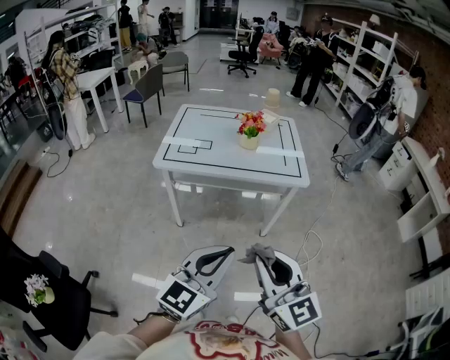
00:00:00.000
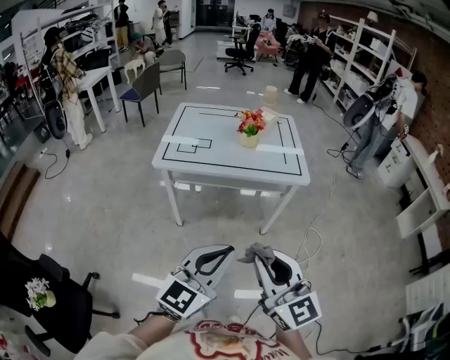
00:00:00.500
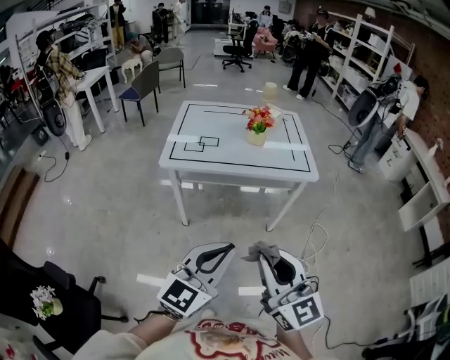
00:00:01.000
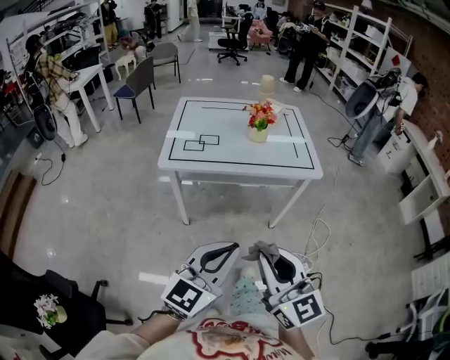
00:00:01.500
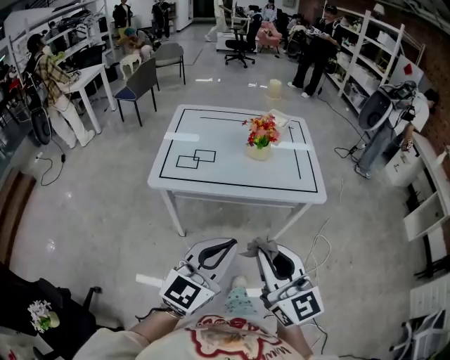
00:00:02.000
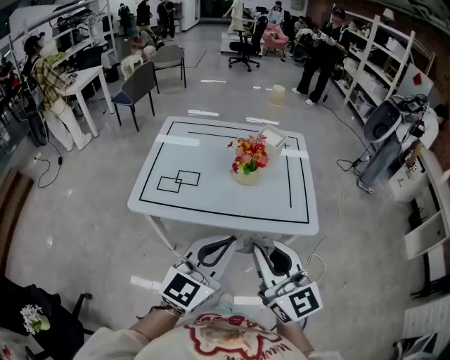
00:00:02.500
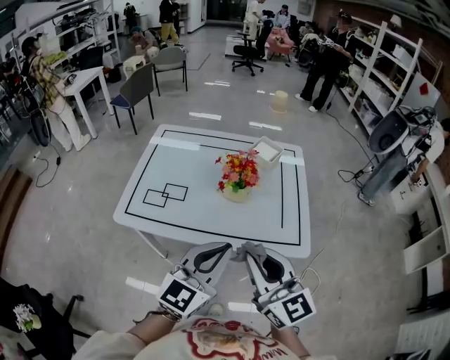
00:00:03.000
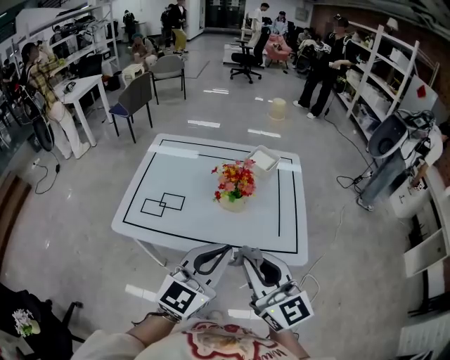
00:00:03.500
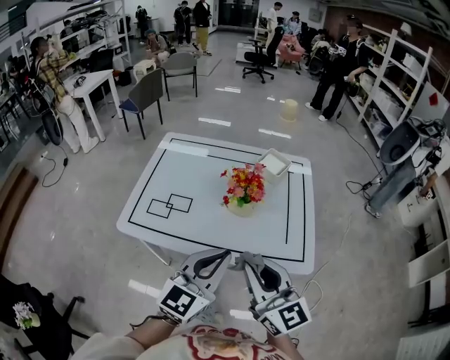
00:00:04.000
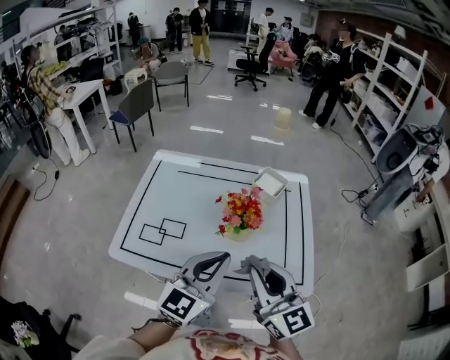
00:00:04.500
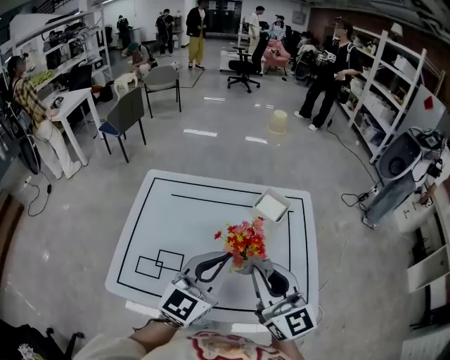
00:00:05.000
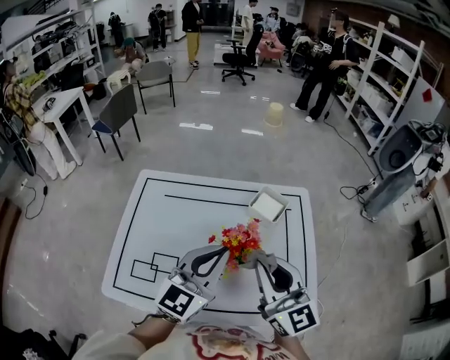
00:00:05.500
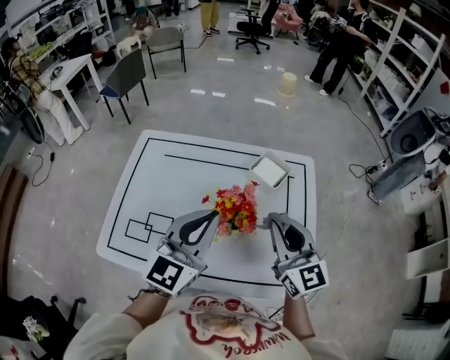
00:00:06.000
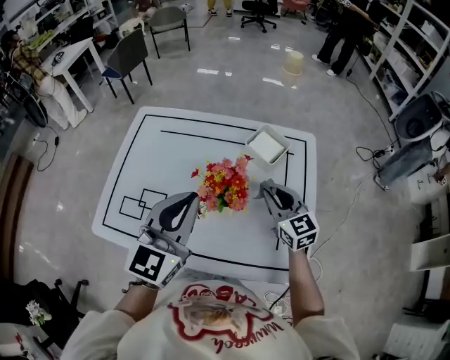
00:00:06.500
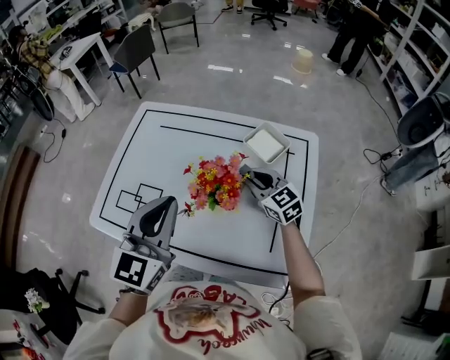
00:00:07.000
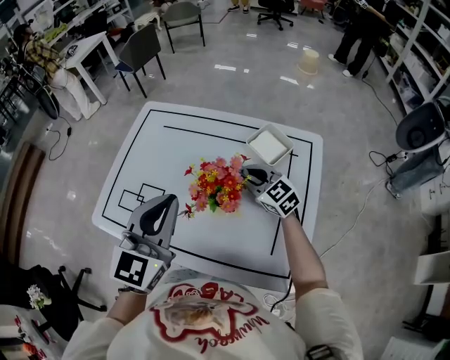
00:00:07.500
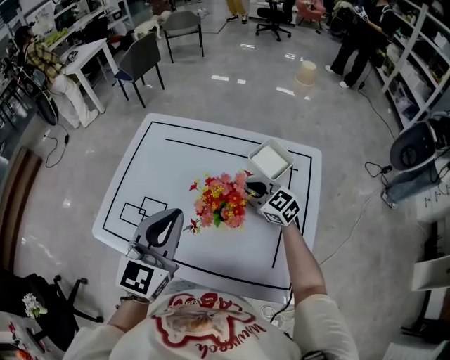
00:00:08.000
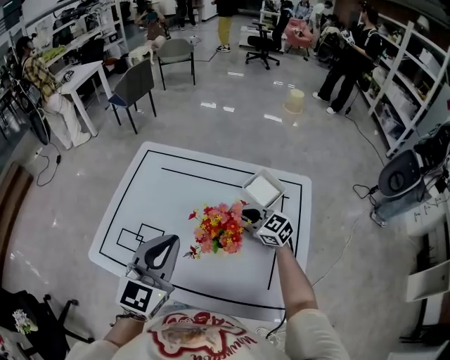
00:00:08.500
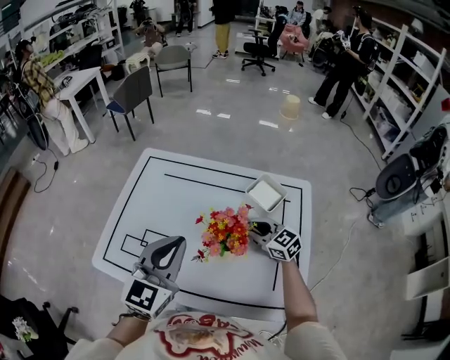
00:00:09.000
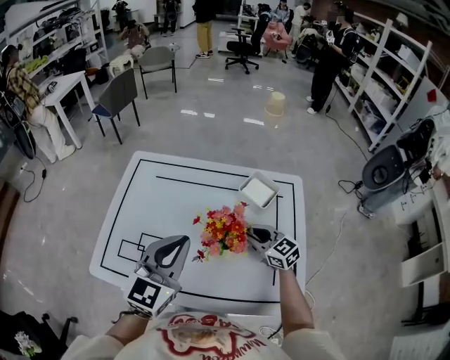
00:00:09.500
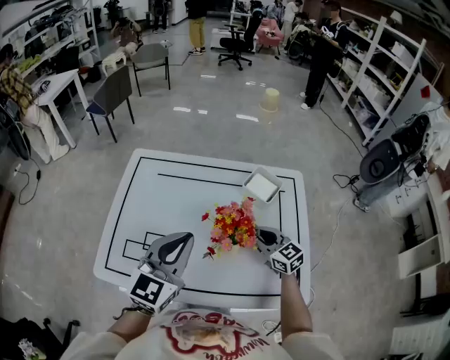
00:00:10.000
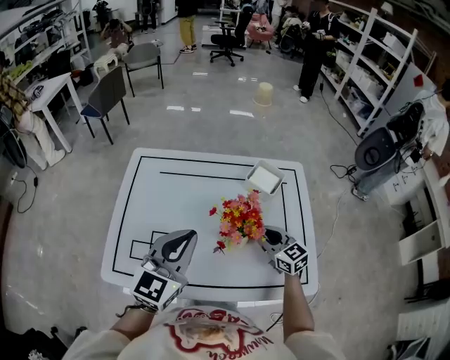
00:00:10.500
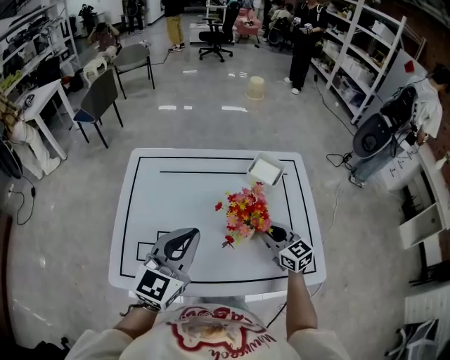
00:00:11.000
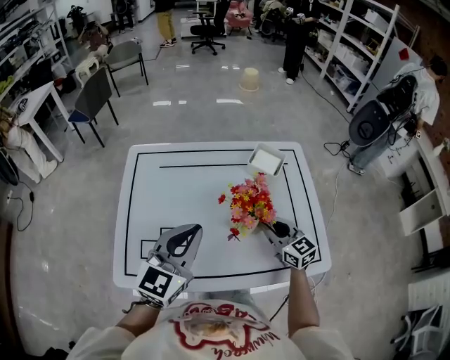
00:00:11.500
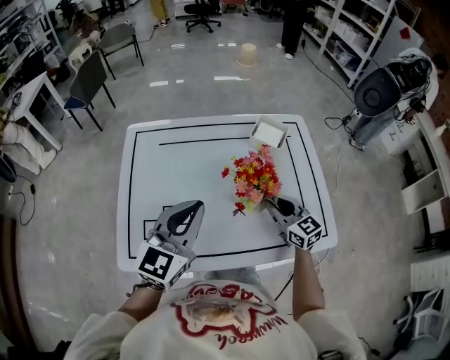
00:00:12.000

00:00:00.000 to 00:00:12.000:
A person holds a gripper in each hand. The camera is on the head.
00:00:00.000 to 00:00:02.000: Both grippers travel together forward, some 15 cm.
00:00:02.000 to 00:00:04.000: The right gripper goes roughly 25 cm forward, while the left gripper is displaced forward and to the right by some 25 cm.
00:00:04.000 to 00:00:06.000: The two grippers go some 25 cm forward.
00:00:06.000 to 00:00:08.000: The right gripper is displaced downward by approximately 20 cm, and swivels approximately 50 degrees.
00:00:08.000 to 00:00:10.000: The right gripper travels backward by approximately 10 cm, and turns by some 20 degrees.
00:00:10.000 to 00:00:12.000: The left gripper moves roughly 5 cm. The right gripper is displaced backward by roughly 5 cm.

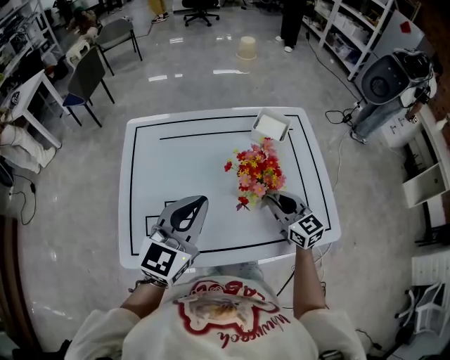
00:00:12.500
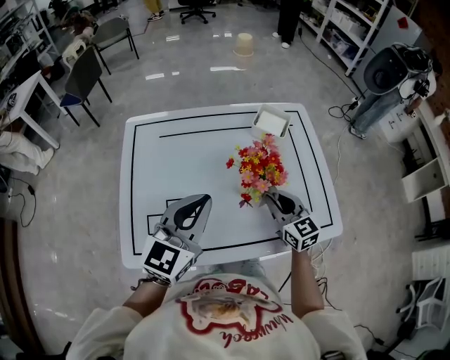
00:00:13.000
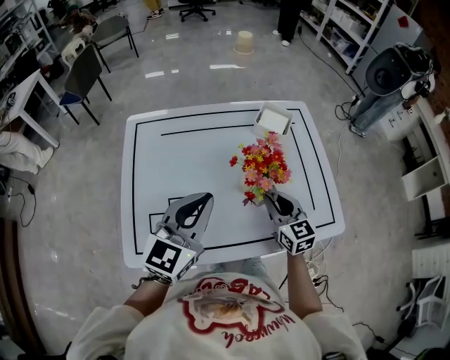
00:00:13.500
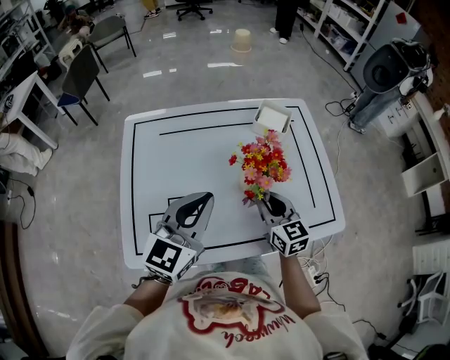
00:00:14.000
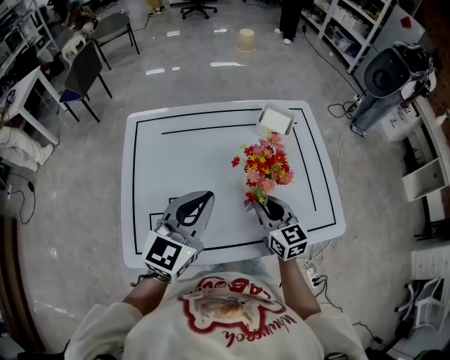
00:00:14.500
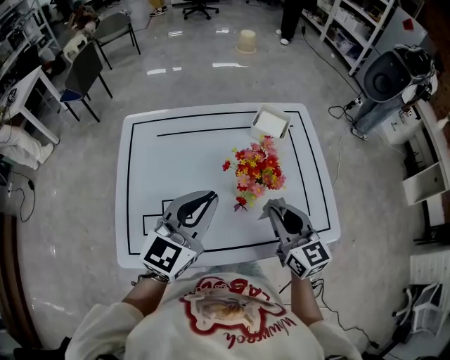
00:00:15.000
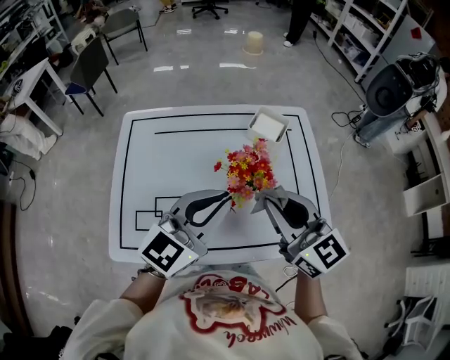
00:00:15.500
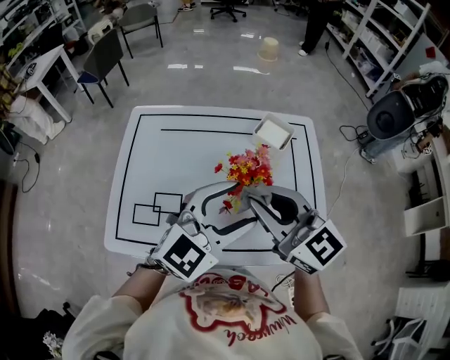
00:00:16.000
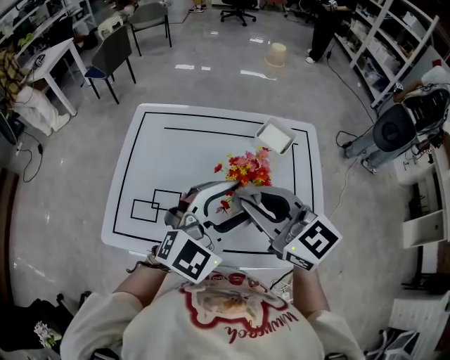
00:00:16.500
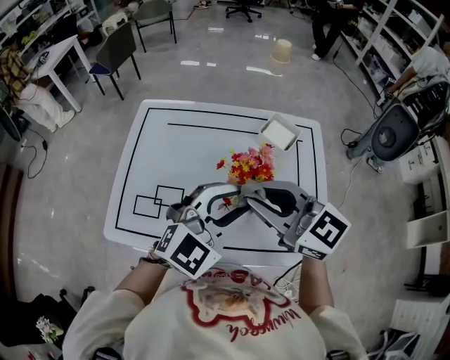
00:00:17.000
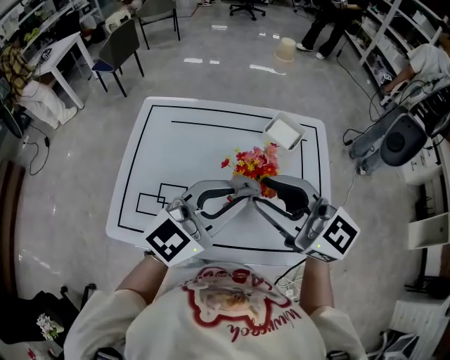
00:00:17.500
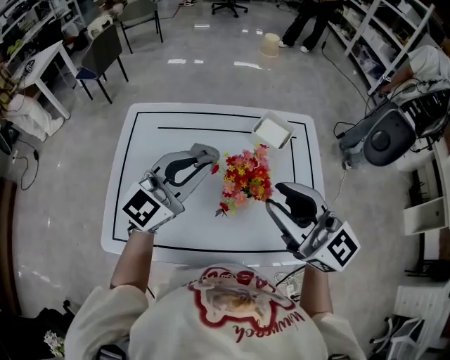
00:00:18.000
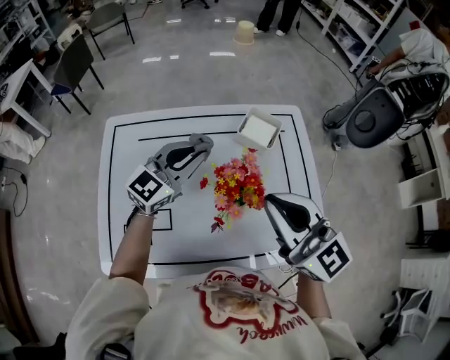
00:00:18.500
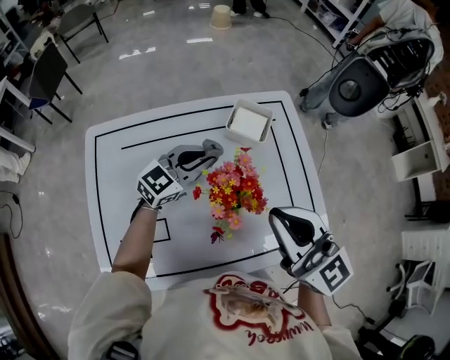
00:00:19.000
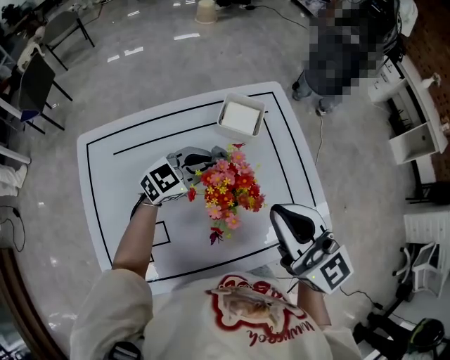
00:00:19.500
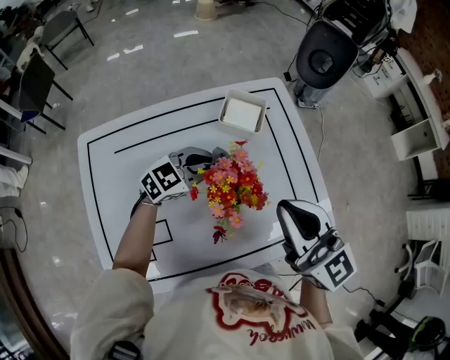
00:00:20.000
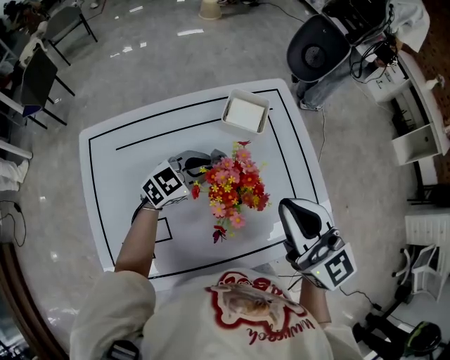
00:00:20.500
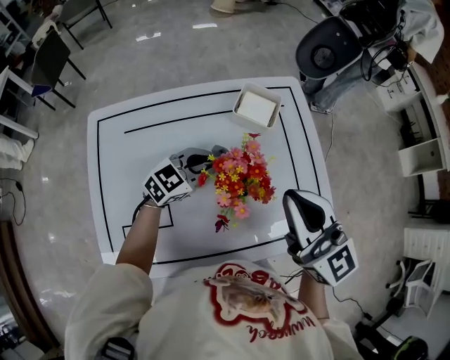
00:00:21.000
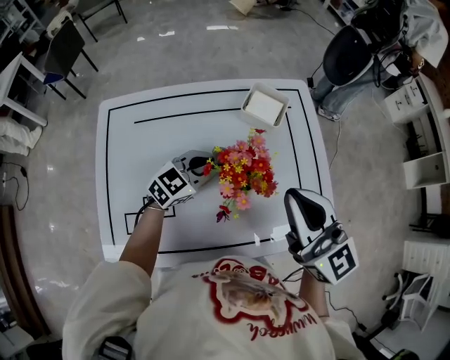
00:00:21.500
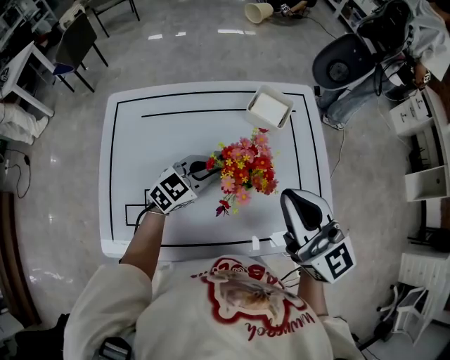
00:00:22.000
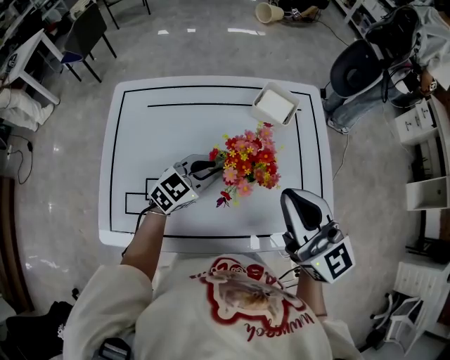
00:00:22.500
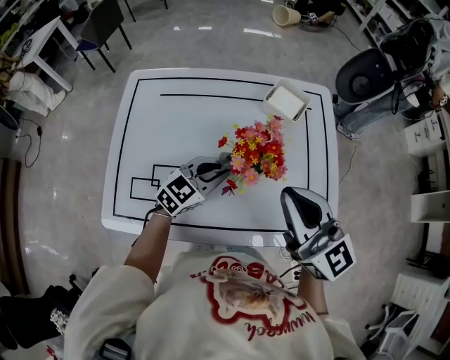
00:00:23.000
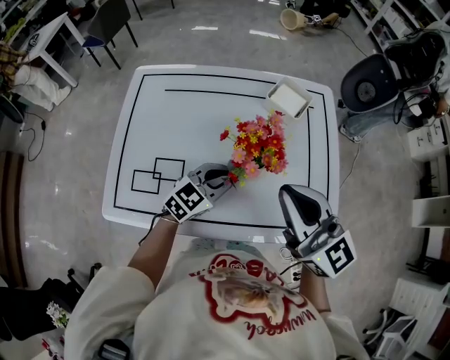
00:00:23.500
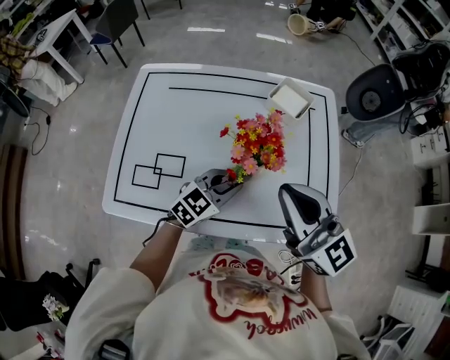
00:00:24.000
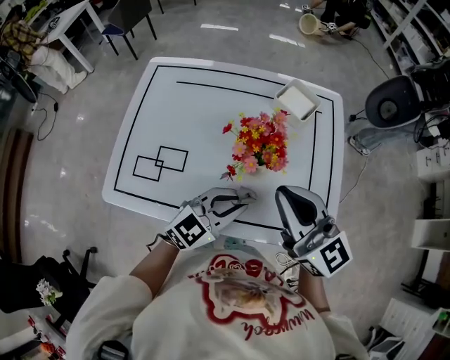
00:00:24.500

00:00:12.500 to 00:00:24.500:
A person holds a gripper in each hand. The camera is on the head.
00:00:12.500 to 00:00:14.500: The right gripper goes roughly 5 cm to the left.
00:00:14.500 to 00:00:16.500: The left gripper is displaced to the right by approximately 15 cm, swivels approximately 30 degrees, and opens its fingers; the right gripper shifts roughly 20 cm upward, and rotates roughly 40 degrees.
00:00:16.500 to 00:00:18.500: The left gripper travels forward by about 20 cm, swivels some 20 degrees, and closes its fingers, while the right gripper heads to the right, covering roughly 5 cm, and changes its angle by some 20 degrees.
00:00:18.500 to 00:00:20.500: The left gripper is displaced downward and to the right by roughly 15 cm, and rotates some 30 degrees; the right gripper ends up roughly 5 cm from where it was.
00:00:20.500 to 00:00:22.500: The left gripper heads backward, covering about 10 cm, and rotates about 20 degrees.
00:00:22.500 to 00:00:24.500: The left gripper is displaced backward and to the right by roughly 15 cm.

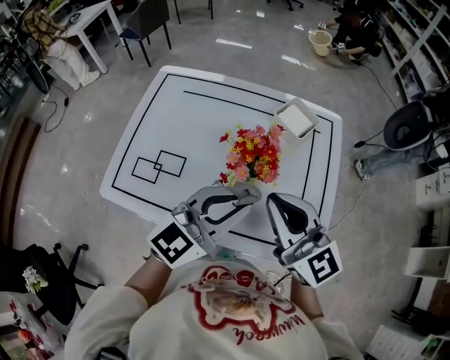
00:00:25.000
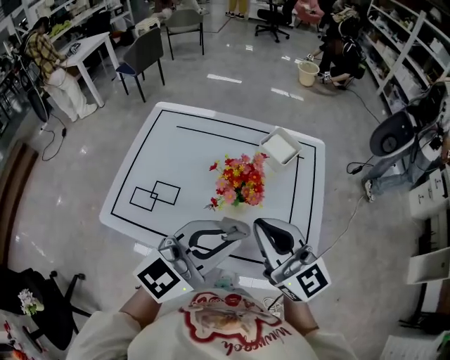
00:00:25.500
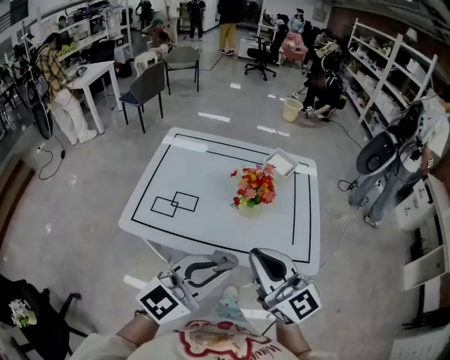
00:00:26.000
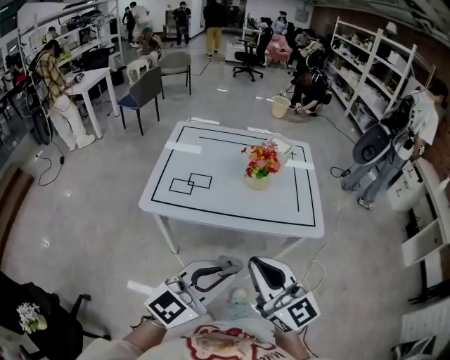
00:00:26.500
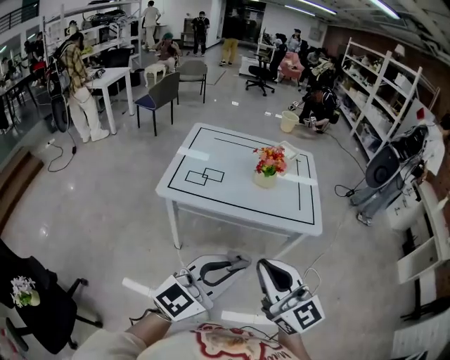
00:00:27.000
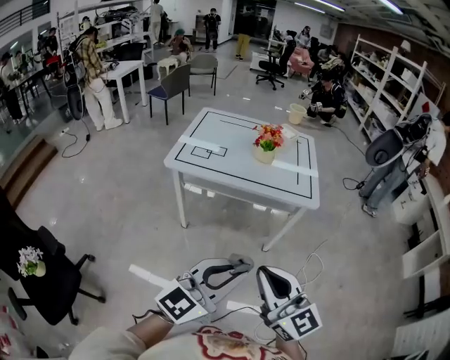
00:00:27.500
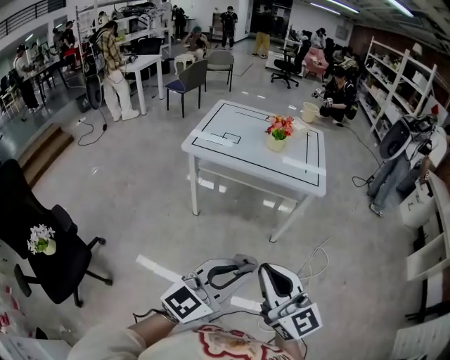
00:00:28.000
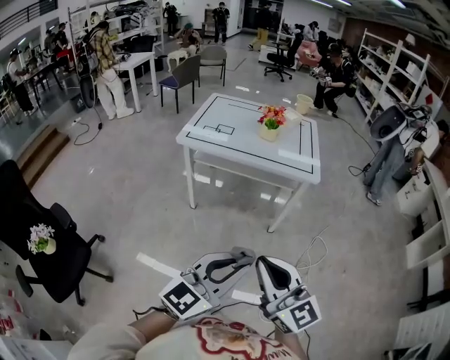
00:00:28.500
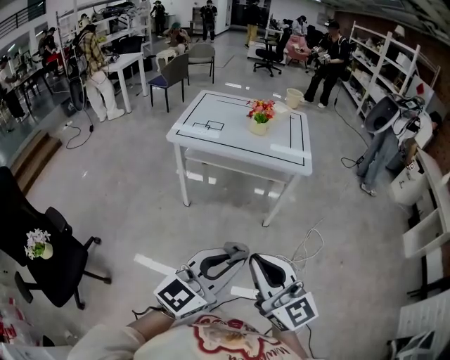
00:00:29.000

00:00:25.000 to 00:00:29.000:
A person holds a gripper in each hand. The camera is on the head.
00:00:25.000 to 00:00:27.000: Both grippers are carried backward, approximately 40 cm.
00:00:27.000 to 00:00:29.000: Both grippers travel together backward, approximately 25 cm.
